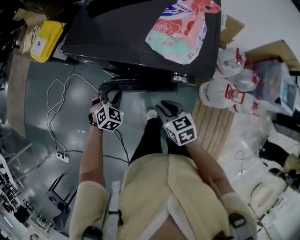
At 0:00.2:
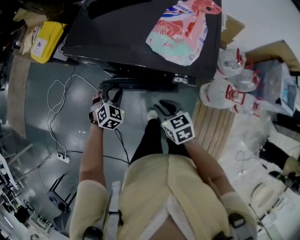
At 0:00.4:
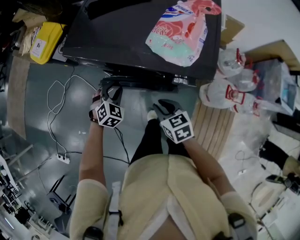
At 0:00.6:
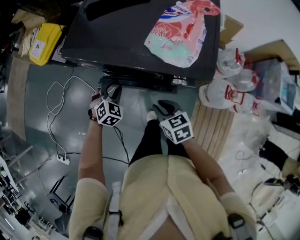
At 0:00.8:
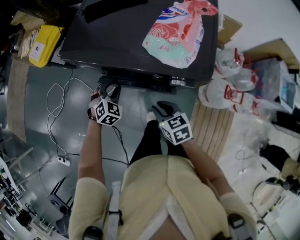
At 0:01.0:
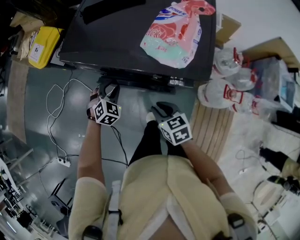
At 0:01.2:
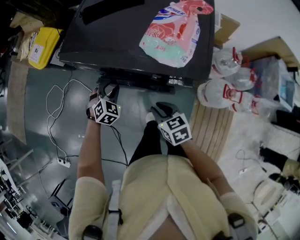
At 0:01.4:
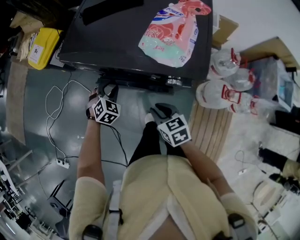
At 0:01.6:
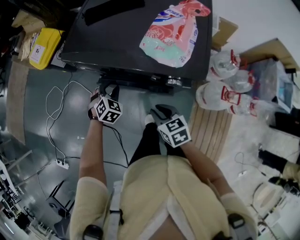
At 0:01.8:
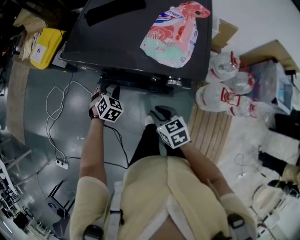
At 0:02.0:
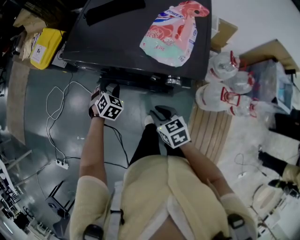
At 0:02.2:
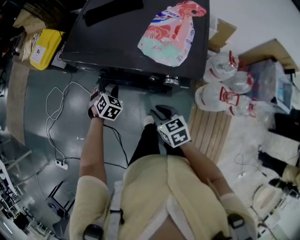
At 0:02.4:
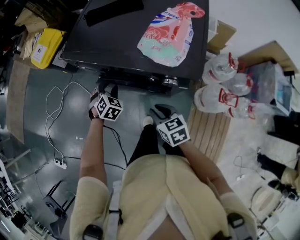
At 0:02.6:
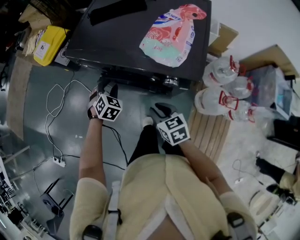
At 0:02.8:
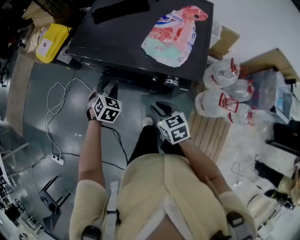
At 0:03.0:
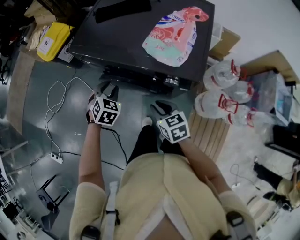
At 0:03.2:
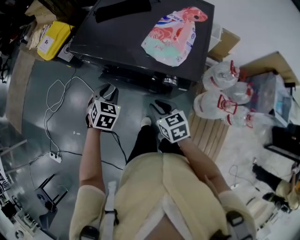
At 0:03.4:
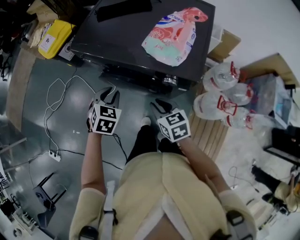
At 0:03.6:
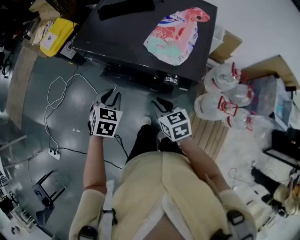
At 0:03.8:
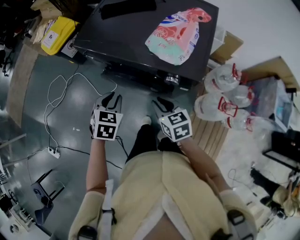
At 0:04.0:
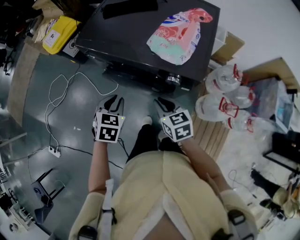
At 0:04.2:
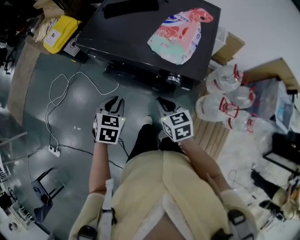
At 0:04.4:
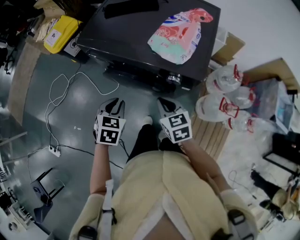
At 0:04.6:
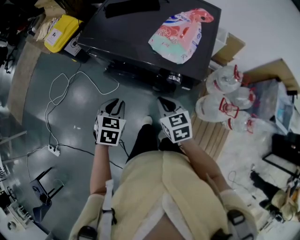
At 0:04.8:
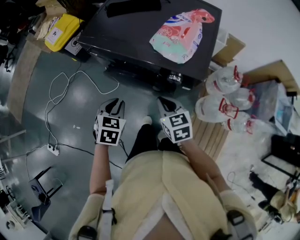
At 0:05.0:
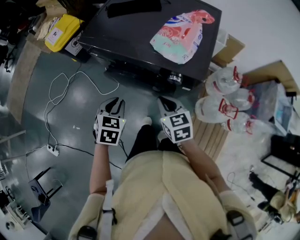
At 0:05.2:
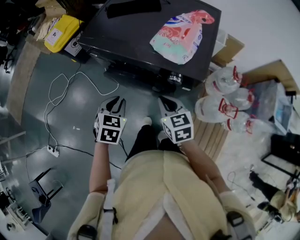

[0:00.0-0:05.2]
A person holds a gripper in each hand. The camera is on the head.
0:00.0 to 0:01.8: There are only small adjustments of the grippers.
0:01.8 to 0:03.4: The left gripper goes roughly 15 cm upward and backward, and changes its angle by some 20 degrees.
0:03.4 to 0:05.2: The left gripper is displaced backward by approximately 5 cm.

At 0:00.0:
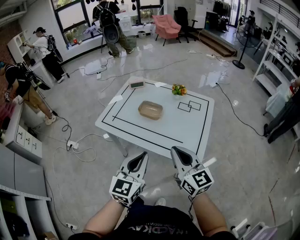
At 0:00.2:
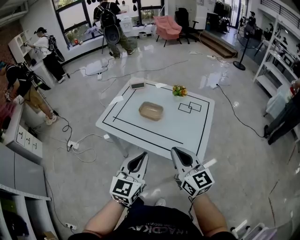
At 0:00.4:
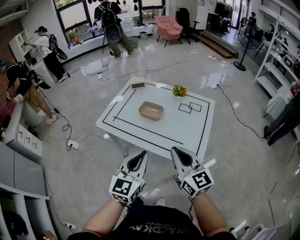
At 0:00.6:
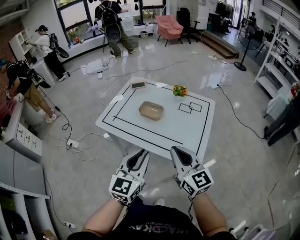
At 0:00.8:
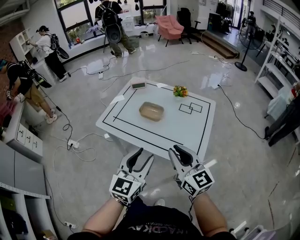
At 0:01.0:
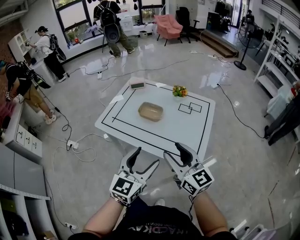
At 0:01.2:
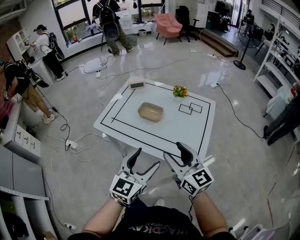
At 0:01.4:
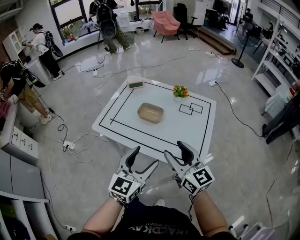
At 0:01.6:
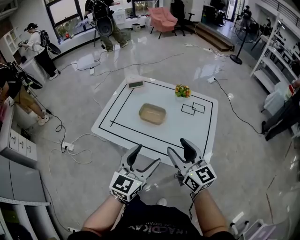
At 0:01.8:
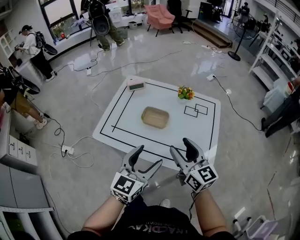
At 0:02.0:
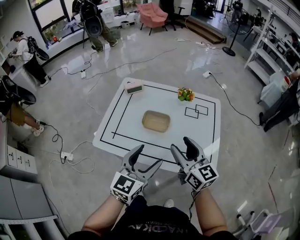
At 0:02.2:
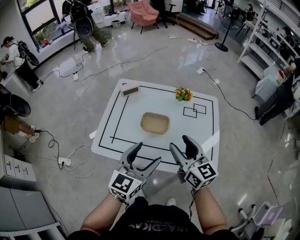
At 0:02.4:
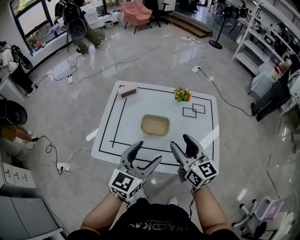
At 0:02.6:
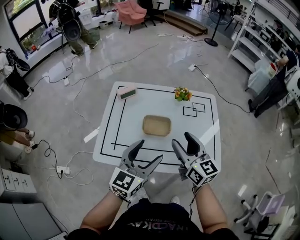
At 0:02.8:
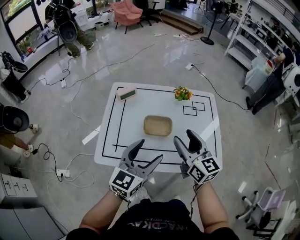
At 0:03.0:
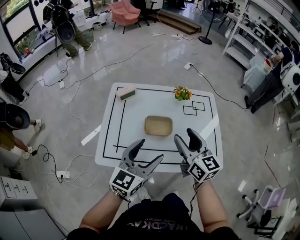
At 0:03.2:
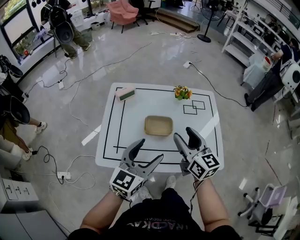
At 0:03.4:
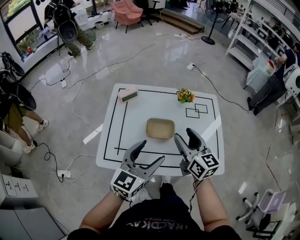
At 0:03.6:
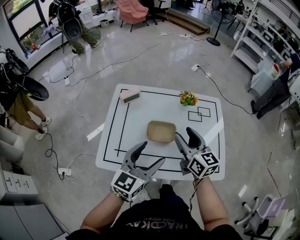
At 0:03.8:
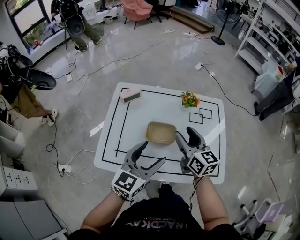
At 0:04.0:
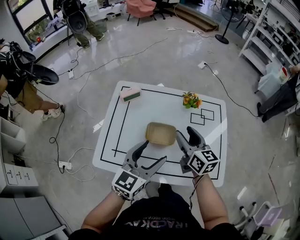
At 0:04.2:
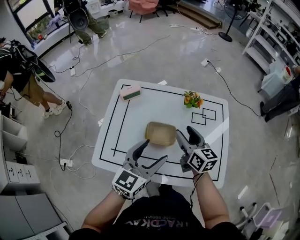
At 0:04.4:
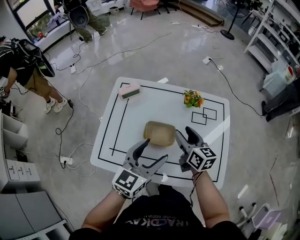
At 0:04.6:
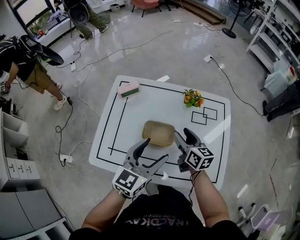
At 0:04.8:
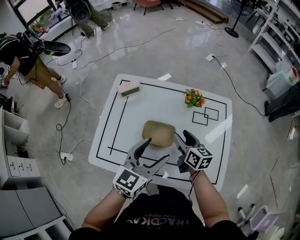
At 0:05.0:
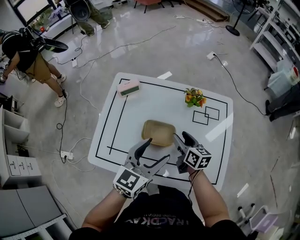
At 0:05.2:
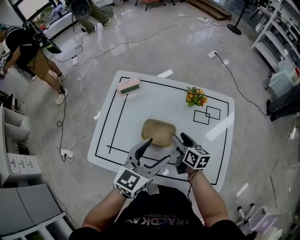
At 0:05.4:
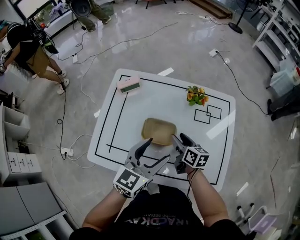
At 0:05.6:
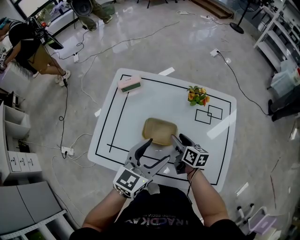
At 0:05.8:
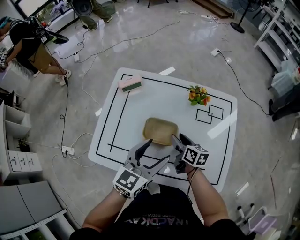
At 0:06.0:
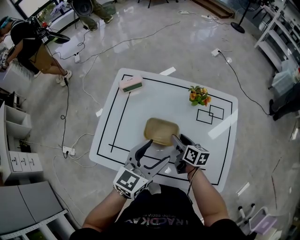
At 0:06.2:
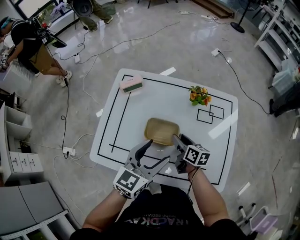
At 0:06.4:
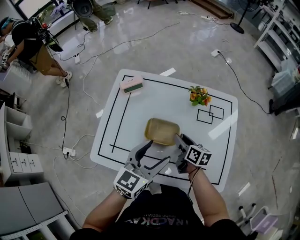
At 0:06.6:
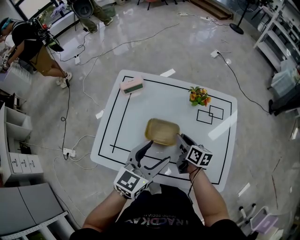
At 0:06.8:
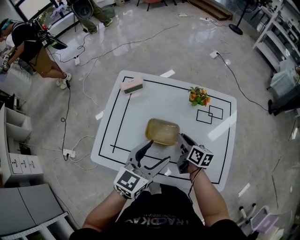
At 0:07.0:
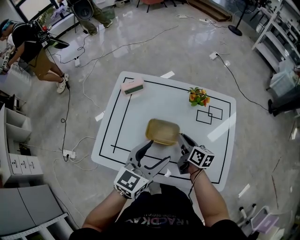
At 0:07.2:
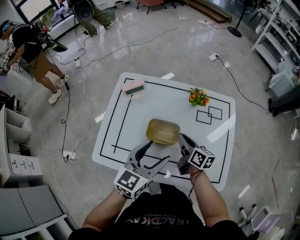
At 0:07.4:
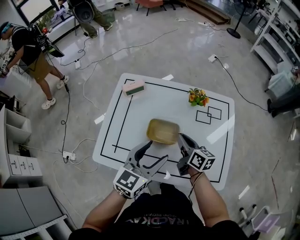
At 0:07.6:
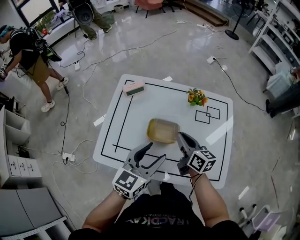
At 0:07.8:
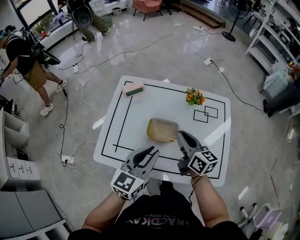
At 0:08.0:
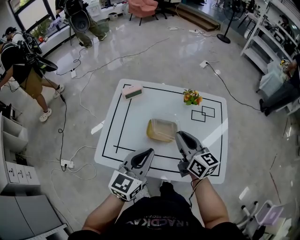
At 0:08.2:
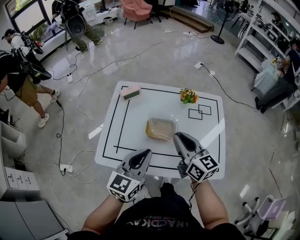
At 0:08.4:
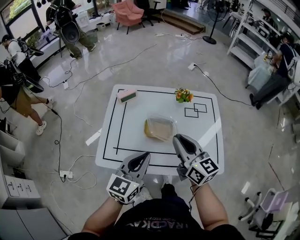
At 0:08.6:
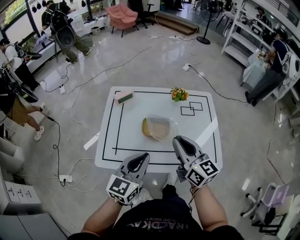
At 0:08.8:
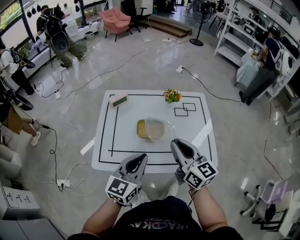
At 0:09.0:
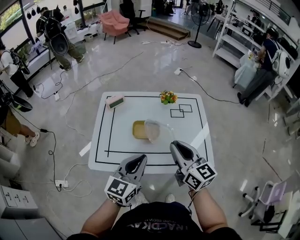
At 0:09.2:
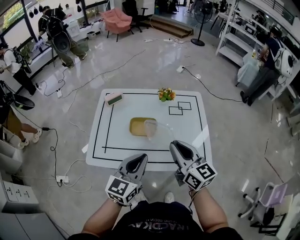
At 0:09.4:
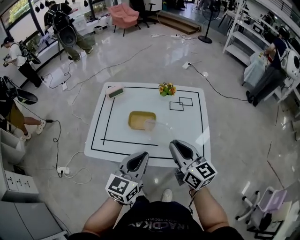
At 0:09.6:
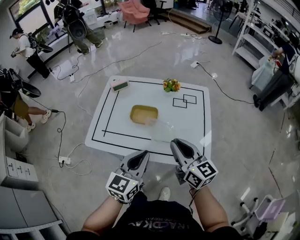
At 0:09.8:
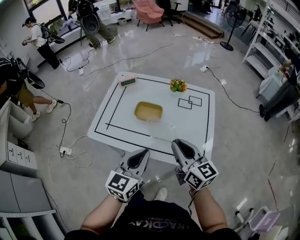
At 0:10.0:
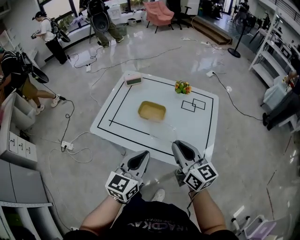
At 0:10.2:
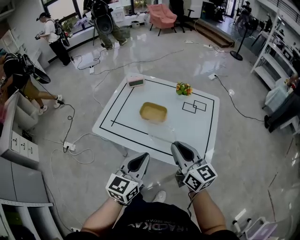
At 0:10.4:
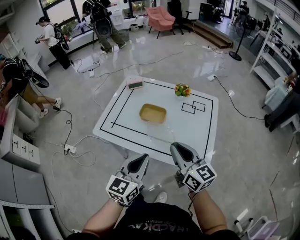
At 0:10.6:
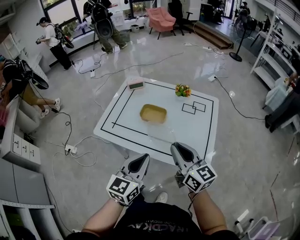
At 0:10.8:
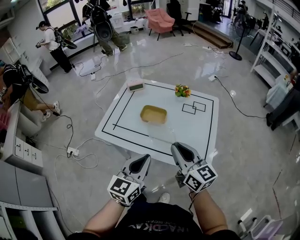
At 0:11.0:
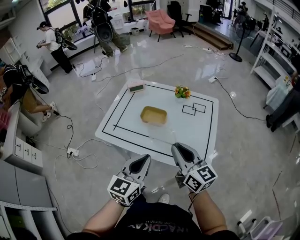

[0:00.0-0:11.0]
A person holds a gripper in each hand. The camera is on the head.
0:00.0 to 0:01.6: The grippers both shift forward by roughly 10 cm. The left gripper opens its fingers. The right gripper opens its fingers.
0:01.6 to 0:03.2: Both grippers move forward and to the left, approximately 20 cm. The left gripper rotates about 20 degrees. Meanwhile the right gripper changes its angle by approximately 20 degrees.
0:03.2 to 0:04.8: The left gripper heads forward and to the right, covering about 10 cm; the right gripper goes roughly 20 cm downward and forward, and swivels about 20 degrees.
0:04.8 to 0:06.2: The right gripper is displaced downward by about 5 cm.
0:06.2 to 0:07.8: The right gripper shifts roughly 15 cm upward, turns by some 20 degrees, and closes up, while the left gripper moves about 5 cm, and closes.
0:07.8 to 0:09.4: The right gripper heads backward, upward and to the right, covering approximately 20 cm, while the left gripper goes roughly 15 cm backward and to the right.
0:09.4 to 0:11.0: Both grippers move backward, about 5 cm.

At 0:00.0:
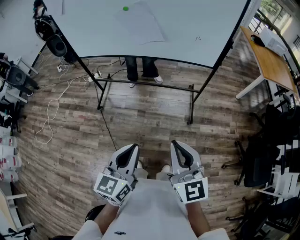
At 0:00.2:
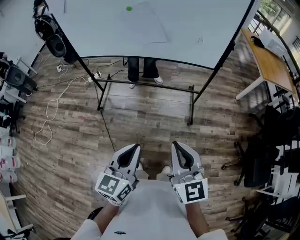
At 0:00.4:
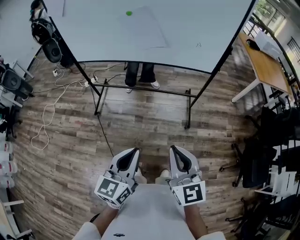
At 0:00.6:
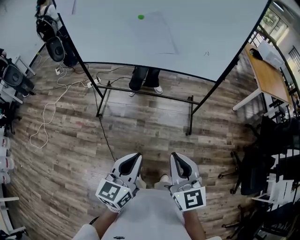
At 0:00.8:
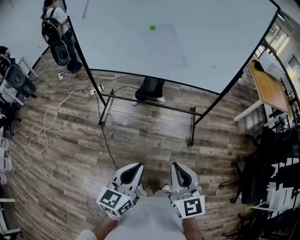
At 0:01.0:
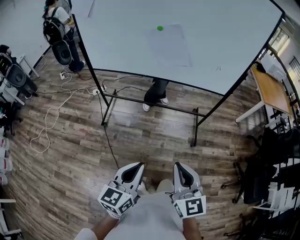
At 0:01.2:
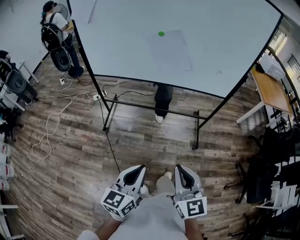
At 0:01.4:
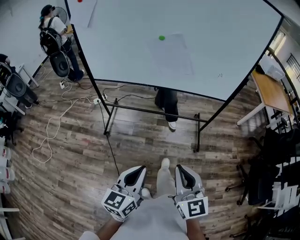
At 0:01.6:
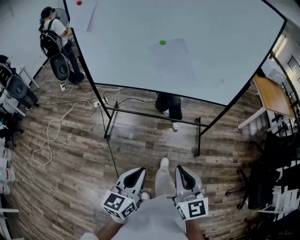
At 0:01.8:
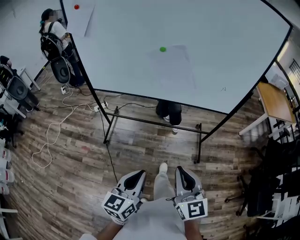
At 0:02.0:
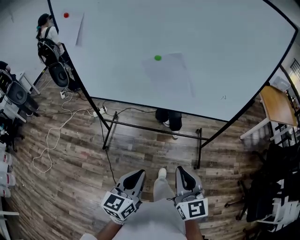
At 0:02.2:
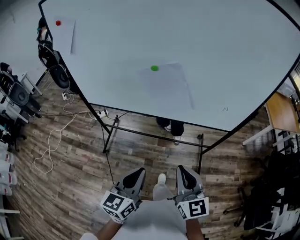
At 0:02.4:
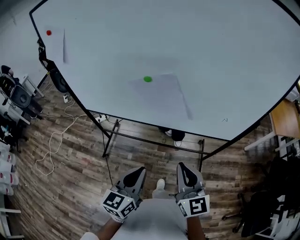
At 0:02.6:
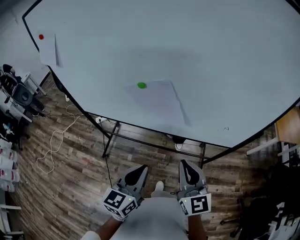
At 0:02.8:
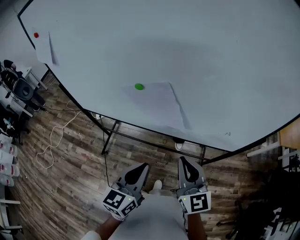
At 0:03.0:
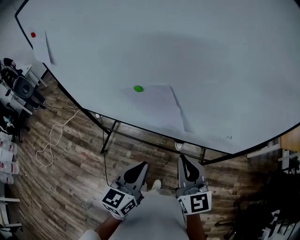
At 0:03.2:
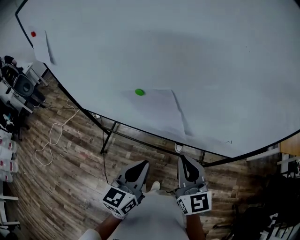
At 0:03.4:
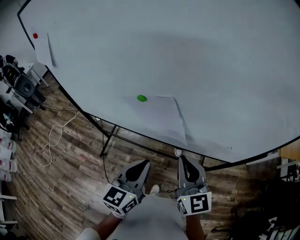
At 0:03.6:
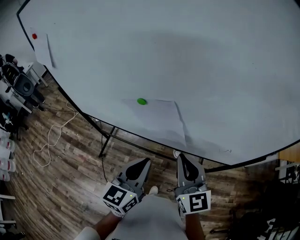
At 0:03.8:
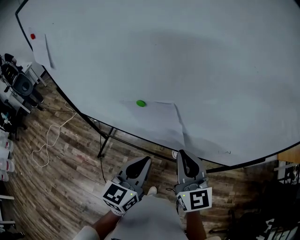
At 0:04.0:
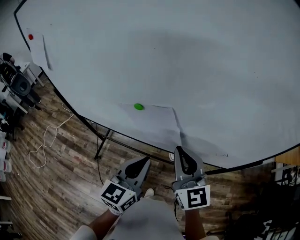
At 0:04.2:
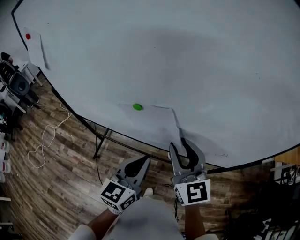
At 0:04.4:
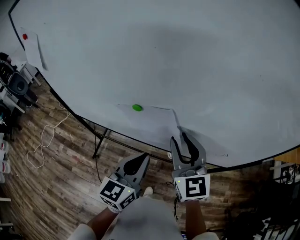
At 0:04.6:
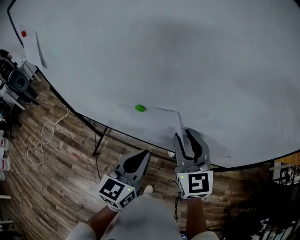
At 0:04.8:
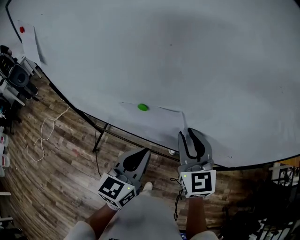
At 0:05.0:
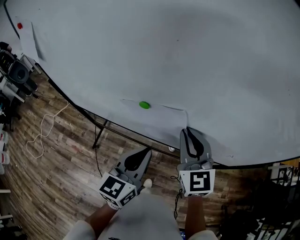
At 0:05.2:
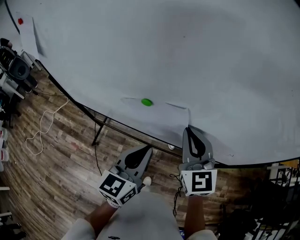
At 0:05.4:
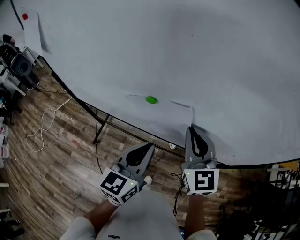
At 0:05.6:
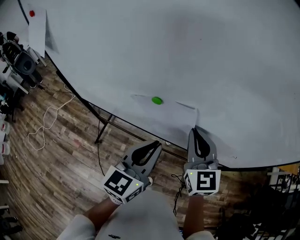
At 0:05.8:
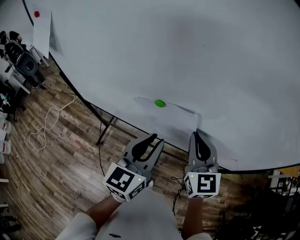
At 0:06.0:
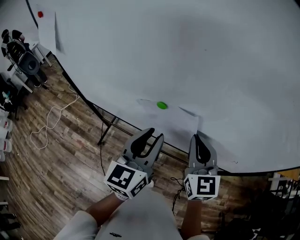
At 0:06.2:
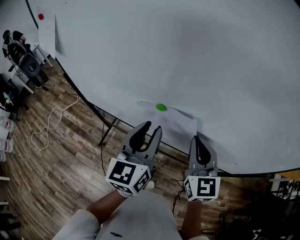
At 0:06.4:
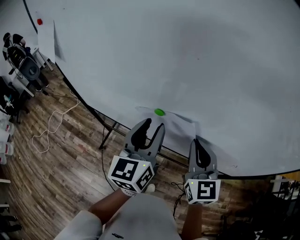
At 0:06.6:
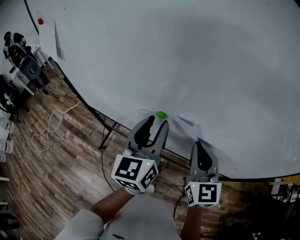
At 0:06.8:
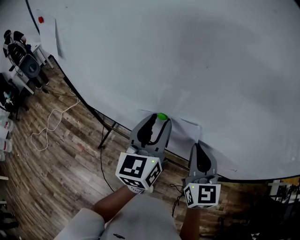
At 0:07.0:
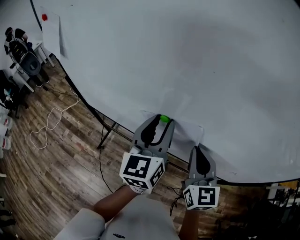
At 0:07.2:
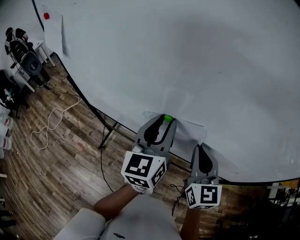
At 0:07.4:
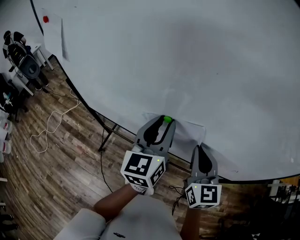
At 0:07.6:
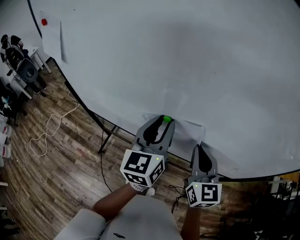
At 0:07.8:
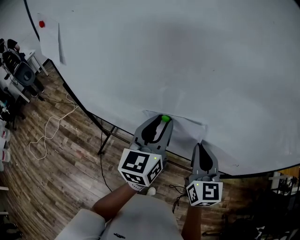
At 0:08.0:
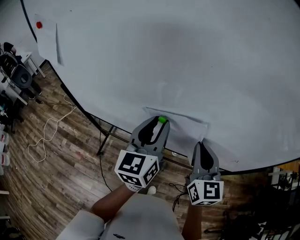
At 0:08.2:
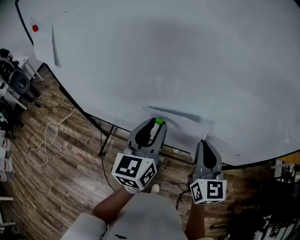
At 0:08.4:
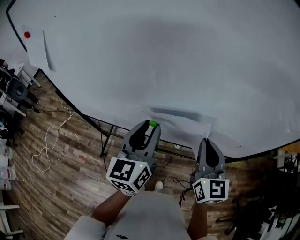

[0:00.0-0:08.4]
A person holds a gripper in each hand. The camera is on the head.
0:00.0 to 0:01.4: Both grippers move to the left, roughly 15 cm.
0:01.4 to 0:02.8: Both grippers move forward, approximately 40 cm.
0:02.8 to 0:04.2: The right gripper travels forward and upward by roughly 15 cm, and opens, while the left gripper shifts roughly 10 cm forward.
0:04.2 to 0:05.6: The right gripper ends up roughly 5 cm from where it was, and closes its fingers.
0:05.6 to 0:07.0: The left gripper moves forward and upward, some 10 cm, turns by about 20 degrees, and opens its fingers.
0:07.0 to 0:08.4: The left gripper heads backward, covering roughly 5 cm. Meanwhile the right gripper shifts by some 5 cm.
